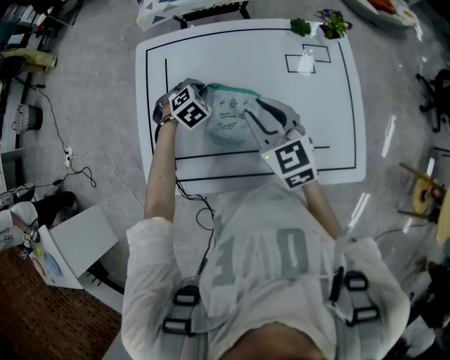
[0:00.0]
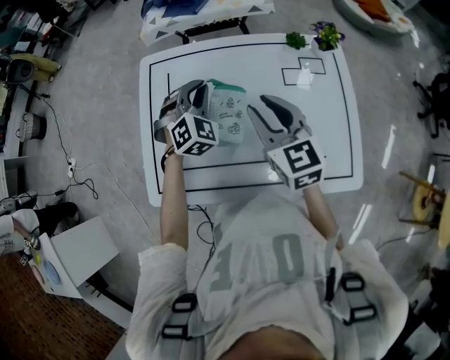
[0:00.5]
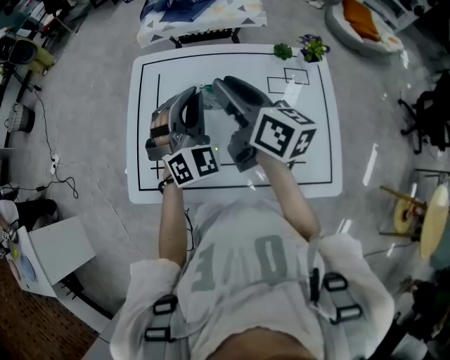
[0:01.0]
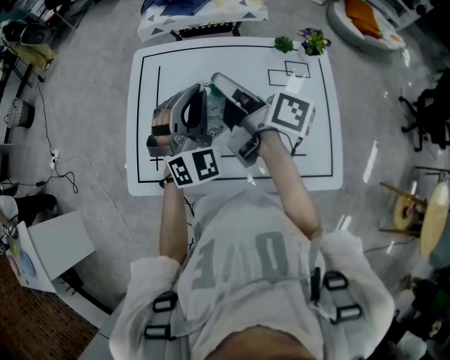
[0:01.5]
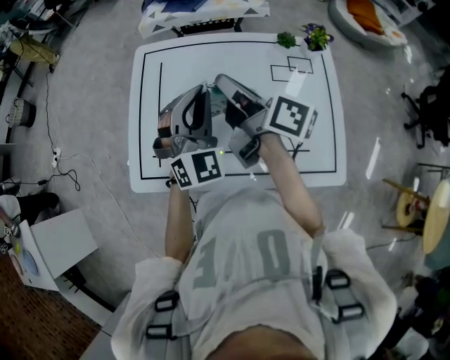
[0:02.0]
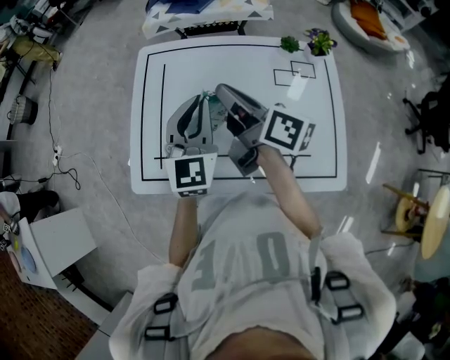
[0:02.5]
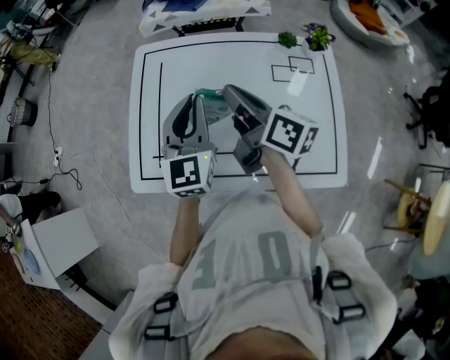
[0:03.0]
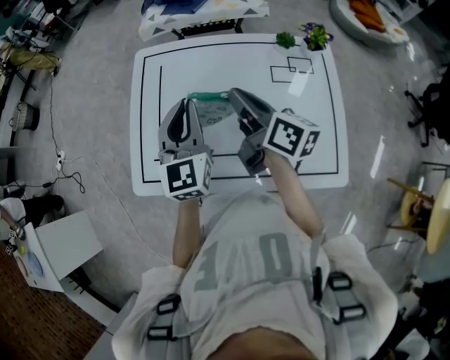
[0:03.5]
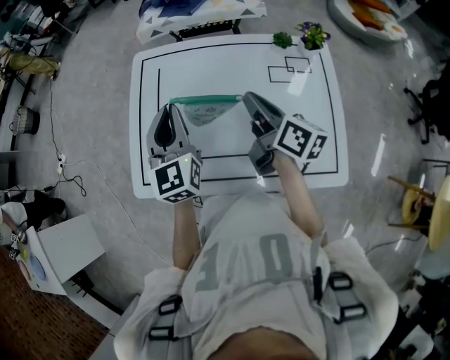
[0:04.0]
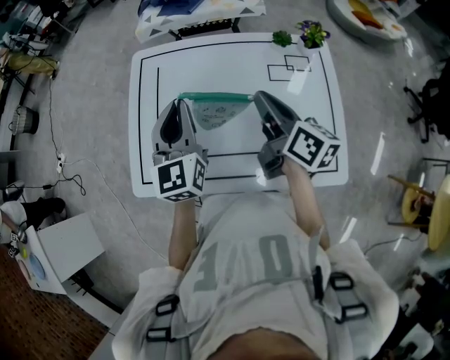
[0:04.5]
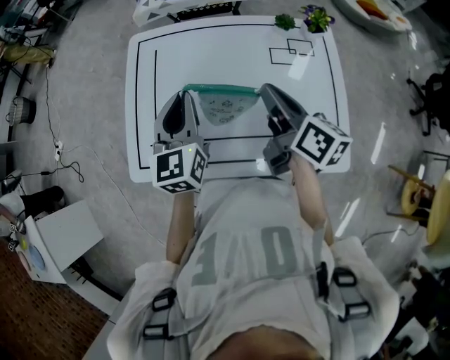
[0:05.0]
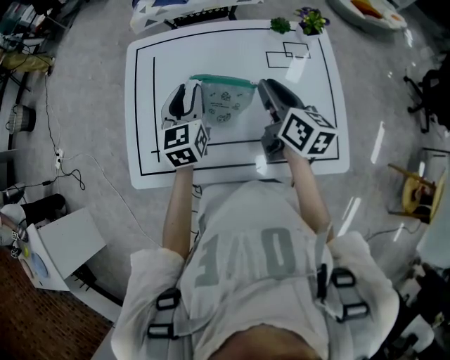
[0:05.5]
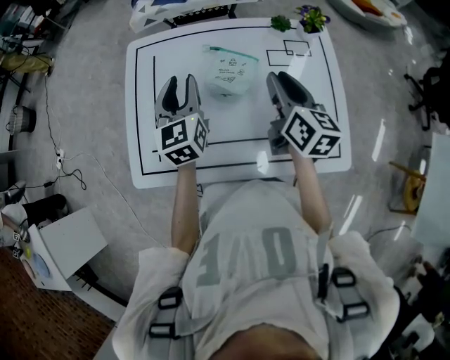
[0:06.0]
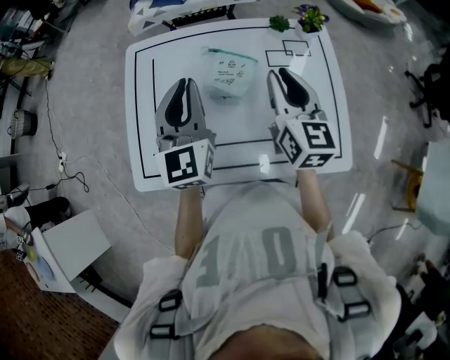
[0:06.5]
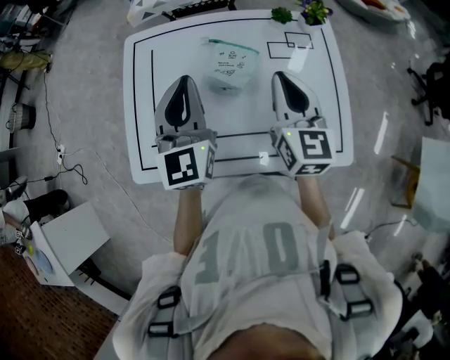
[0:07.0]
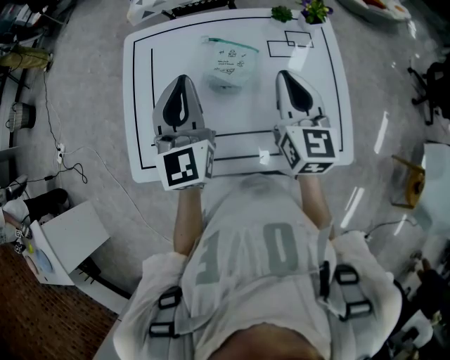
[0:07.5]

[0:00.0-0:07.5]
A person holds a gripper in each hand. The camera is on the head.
0:00.0 to 0:02.0: The right gripper is displaced upward by approximately 10 cm, rotates around the line of its fingers by approximately 60 degrees, clockwise from behind, and closes. The left gripper is displaced upward and backward by some 30 cm, and tips its fingers upward by approximately 60 degrees.
0:02.0 to 0:04.0: The left gripper travels to the left by approximately 5 cm, and rolls counterclockwise, seen from behind, by approximately 40 degrees, while the right gripper is displaced downward and to the right by roughly 10 cm.
0:04.0 to 0:05.5: The left gripper goes roughly 10 cm downward, and opens; the right gripper shifts by some 5 cm.
0:05.5 to 0:07.5: The left gripper goes about 10 cm upward, and closes up. Meanwhile the right gripper moves some 5 cm, and turns by approximately 30 degrees.

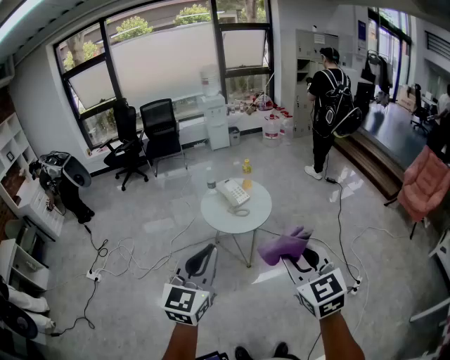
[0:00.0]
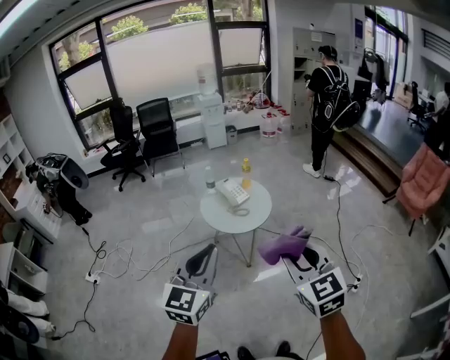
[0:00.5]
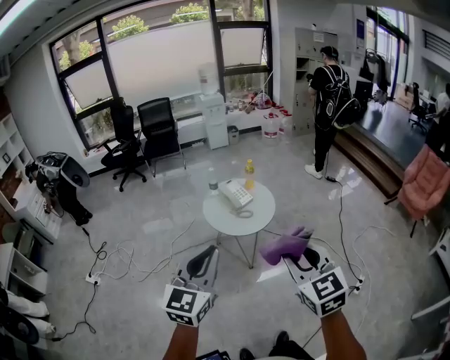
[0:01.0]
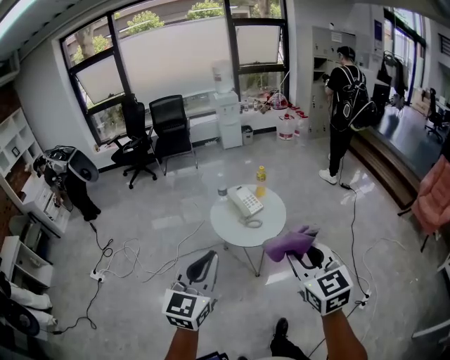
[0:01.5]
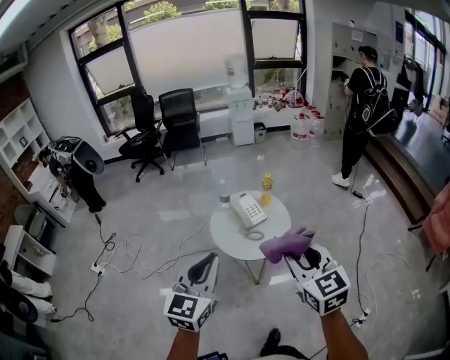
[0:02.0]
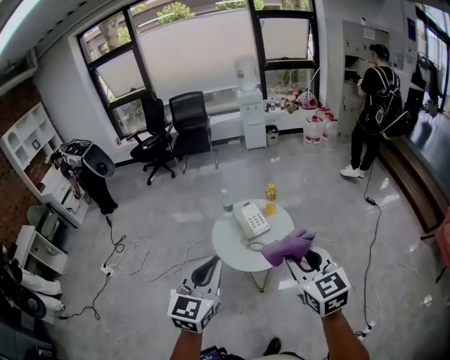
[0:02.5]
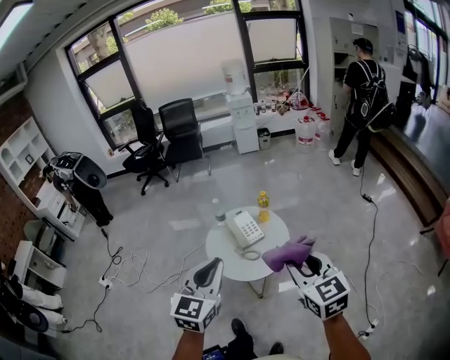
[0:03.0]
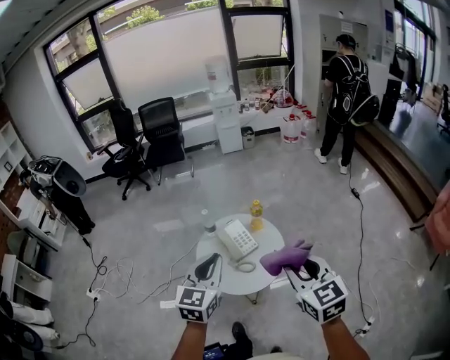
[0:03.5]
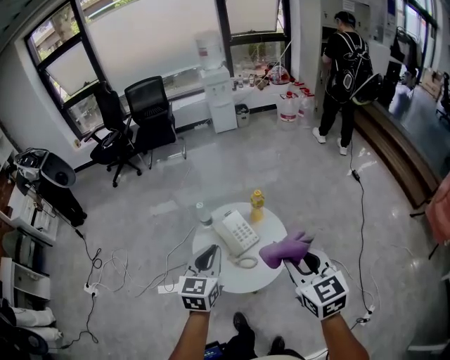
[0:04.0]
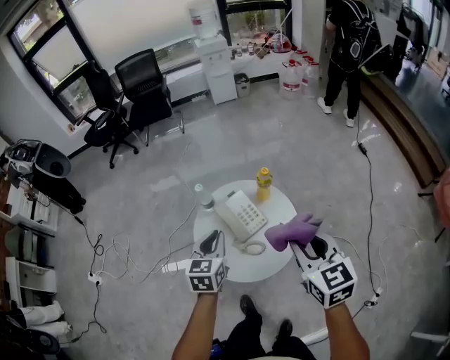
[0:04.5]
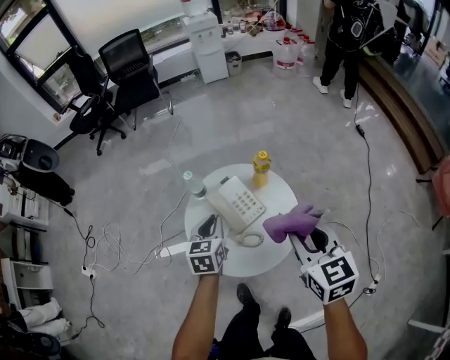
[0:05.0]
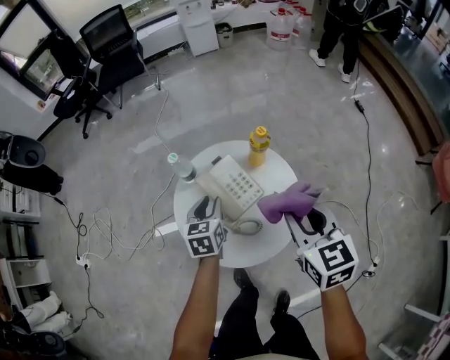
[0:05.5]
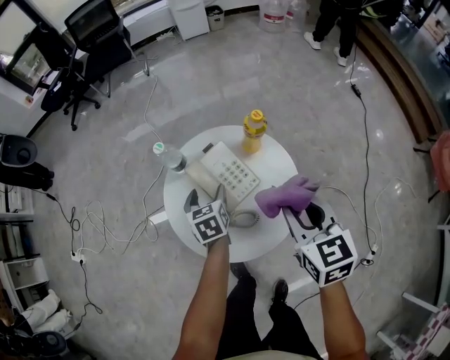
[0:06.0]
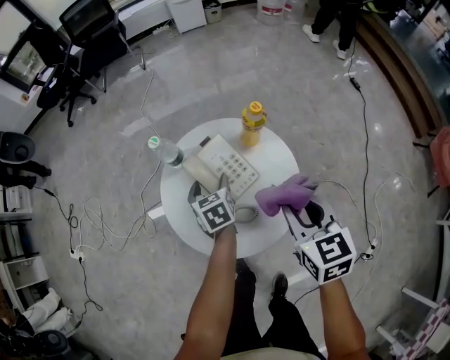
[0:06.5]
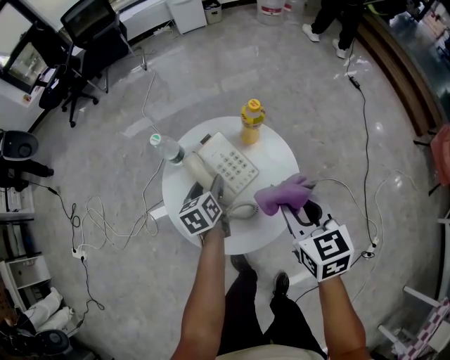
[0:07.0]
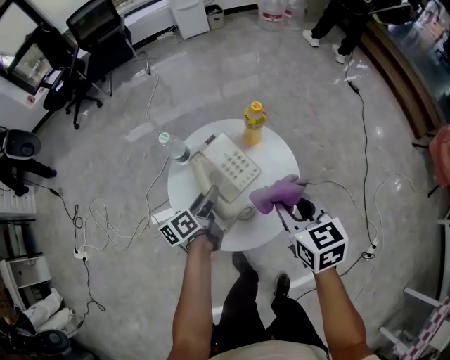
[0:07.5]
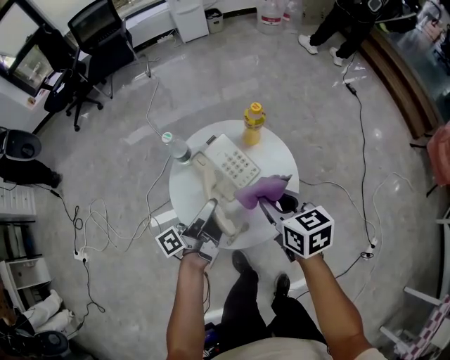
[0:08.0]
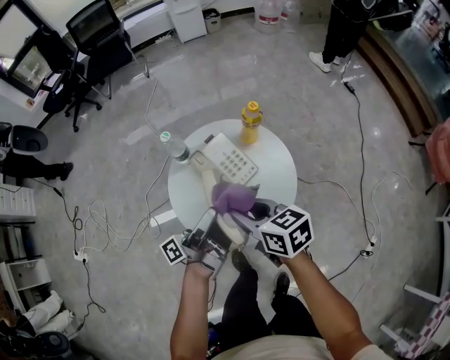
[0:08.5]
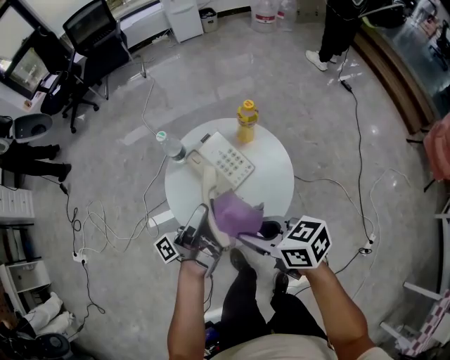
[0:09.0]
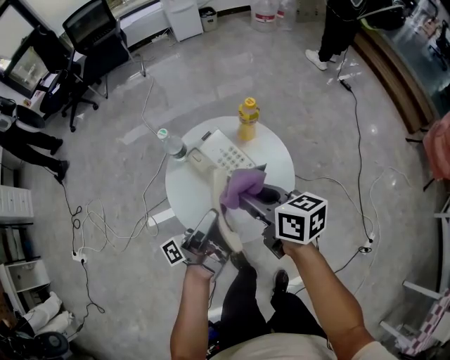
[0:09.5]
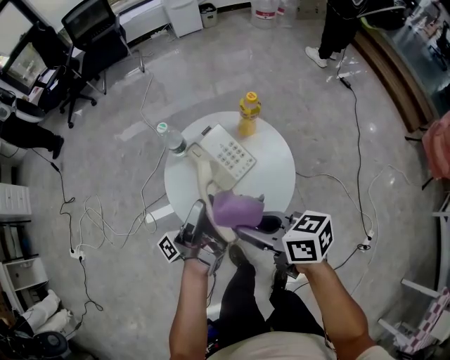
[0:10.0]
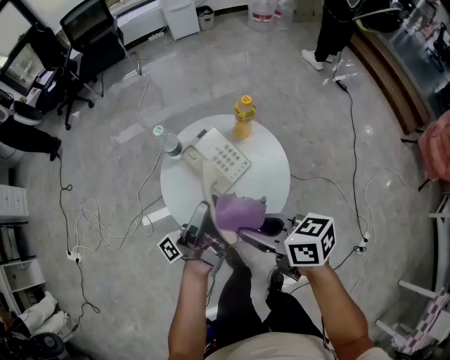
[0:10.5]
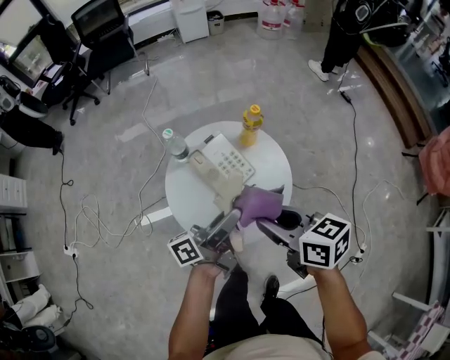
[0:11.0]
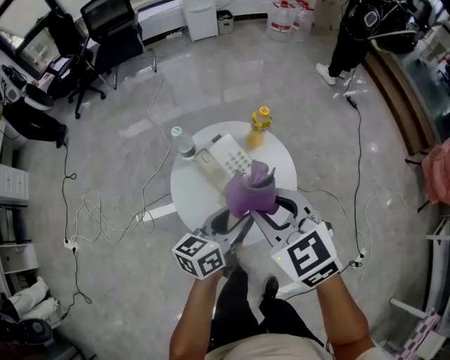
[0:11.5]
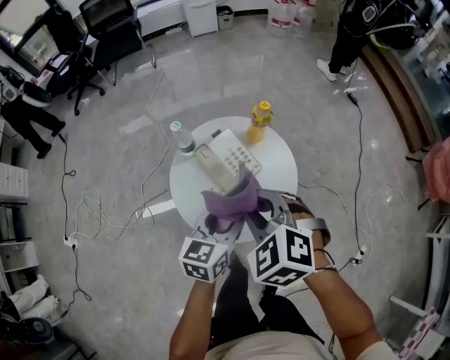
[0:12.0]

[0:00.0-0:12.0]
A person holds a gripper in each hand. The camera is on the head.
0:00.0 to 0:02.0: Both grippers travel together forward, about 25 cm.
0:02.0 to 0:04.0: The right gripper heads forward, covering approximately 25 cm, while the left gripper is displaced forward and downward by about 35 cm.
0:04.0 to 0:06.0: Both grippers travel together downward and forward, some 30 cm. The left gripper changes its angle by about 30 degrees, and opens its fingers.
0:06.0 to 0:08.0: The left gripper goes approximately 15 cm upward and backward, and angles its fingers upward, by roughly 50 degrees, while the right gripper goes roughly 5 cm to the left.
0:08.0 to 0:10.0: The left gripper travels upward by approximately 5 cm, and swivels about 30 degrees; the right gripper moves forward and backward over approximately 10 cm, changing direction 2 times, and rotates about 30 degrees.
0:10.0 to 0:12.0: The right gripper moves forward, approximately 5 cm, and rotates around the line of its fingers by approximately 60 degrees, counterclockwise from behind; the left gripper shifts about 5 cm to the right, and tilts its fingers some 50 degrees downward.

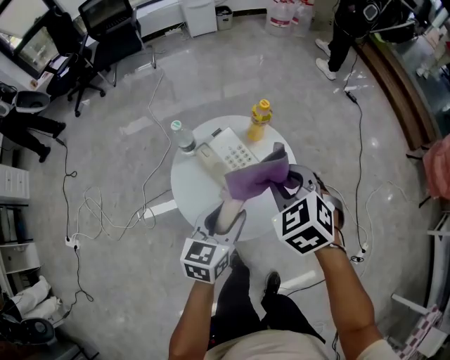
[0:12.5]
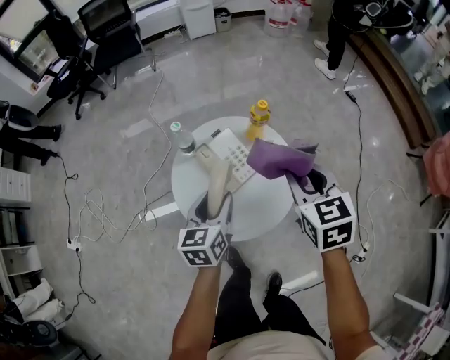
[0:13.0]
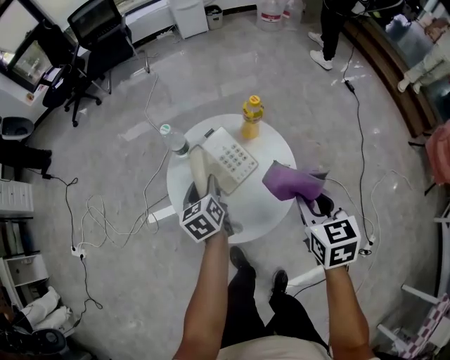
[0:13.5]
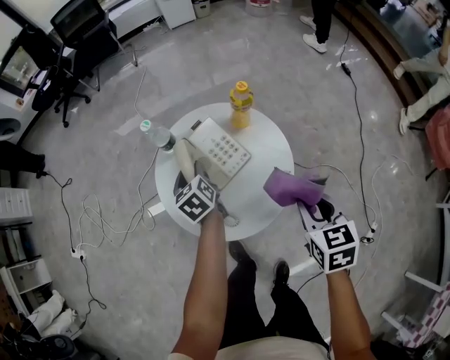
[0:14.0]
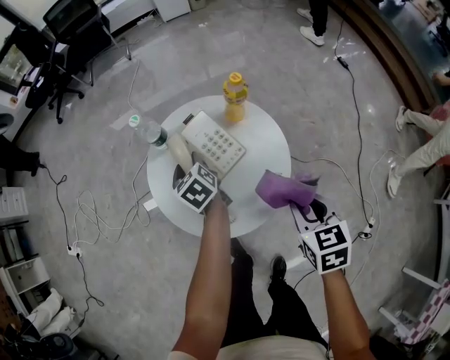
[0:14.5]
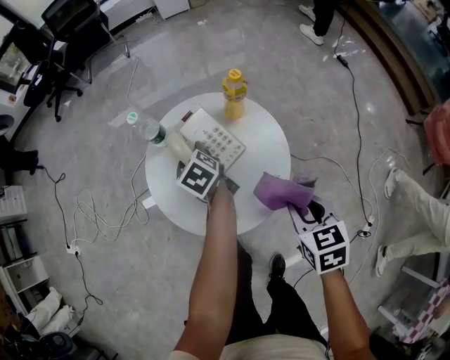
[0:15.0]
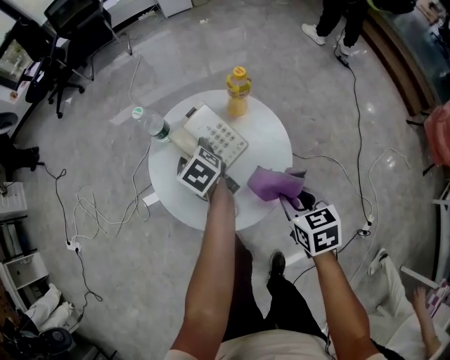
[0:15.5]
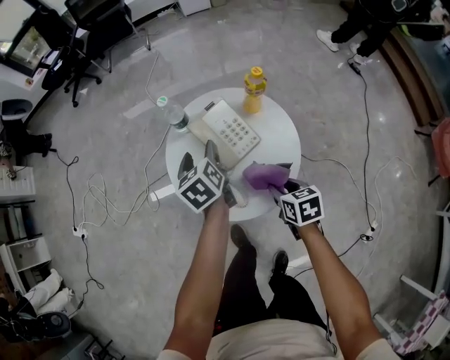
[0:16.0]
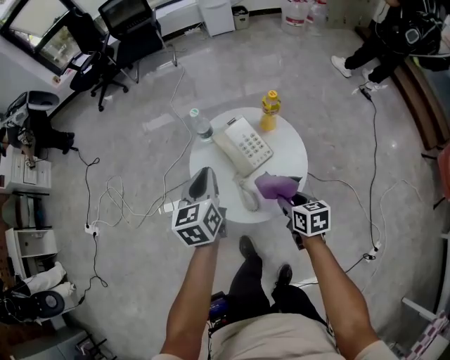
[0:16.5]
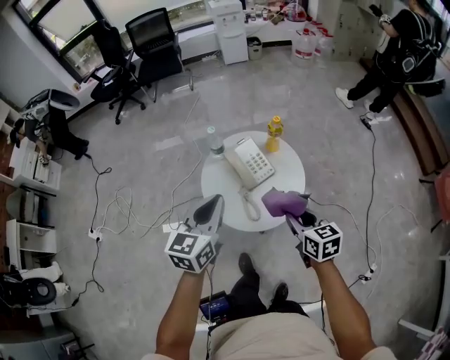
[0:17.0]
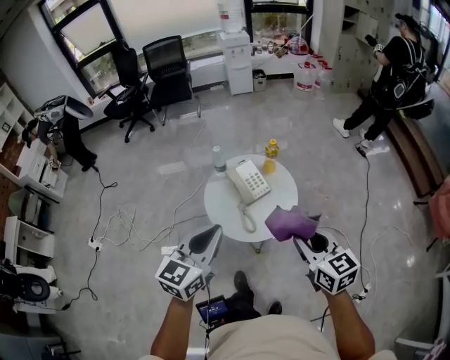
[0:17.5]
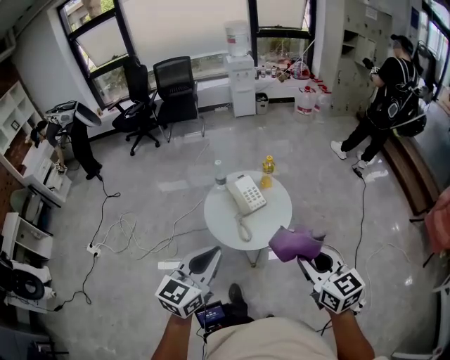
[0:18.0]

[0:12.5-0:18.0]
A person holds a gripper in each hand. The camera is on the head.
0:12.5 to 0:14.5: The left gripper goes approximately 15 cm downward, and rotates about 50 degrees, while the right gripper ends up approximately 20 cm from where it was, and rotates approximately 40 degrees.
0:14.5 to 0:16.0: The left gripper is displaced upward by approximately 10 cm, while the right gripper travels downward and to the left by some 10 cm.
0:16.0 to 0:18.0: The left gripper heads backward and upward, covering some 50 cm, tilts its fingers roughly 30 degrees upward, and closes up; the right gripper moves upward and backward, some 50 cm, and points its fingers some 30 degrees further upward.

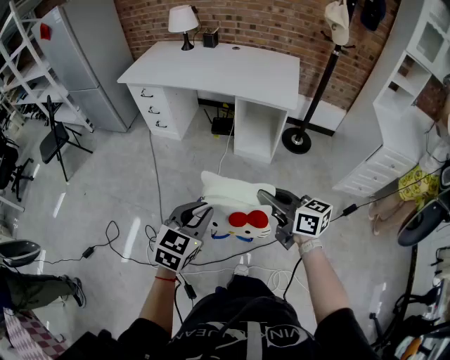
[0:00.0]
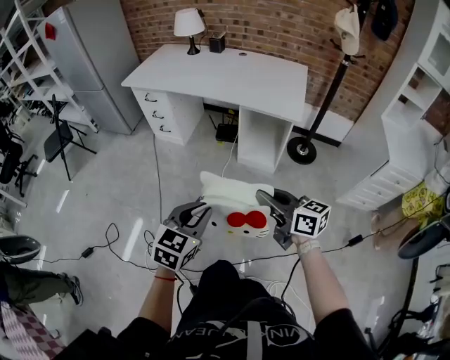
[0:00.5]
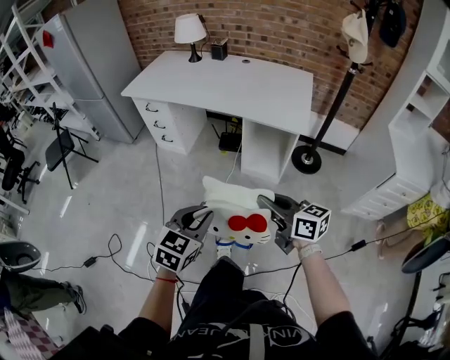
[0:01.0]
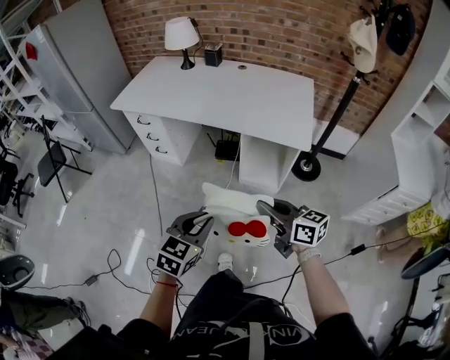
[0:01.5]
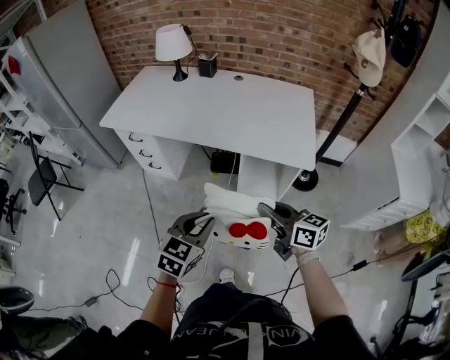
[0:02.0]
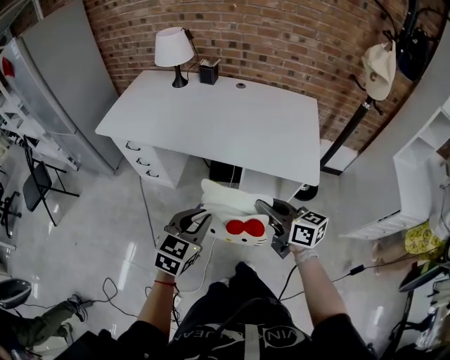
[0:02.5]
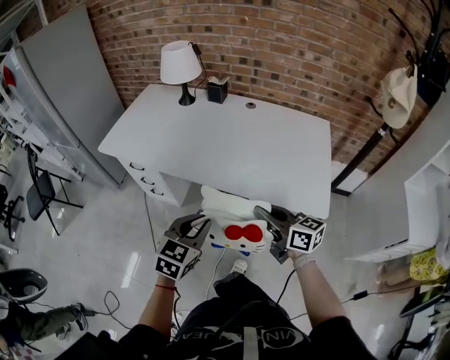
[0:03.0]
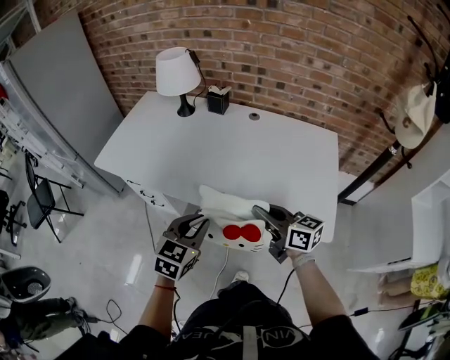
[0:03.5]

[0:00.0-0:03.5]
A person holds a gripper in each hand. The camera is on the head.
0:00.0 to 0:02.0: The two grippers go roughly 35 cm forward.
0:02.0 to 0:03.5: Both grippers travel together forward, about 30 cm.
